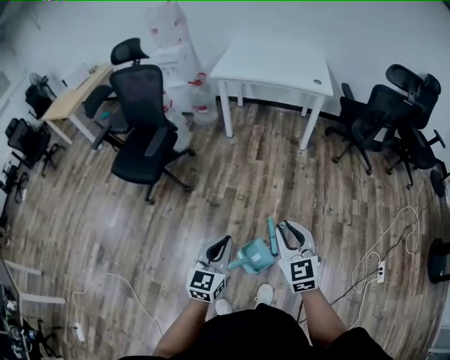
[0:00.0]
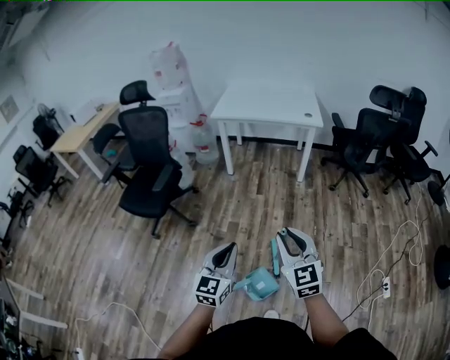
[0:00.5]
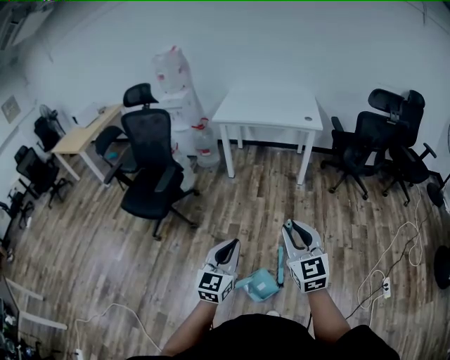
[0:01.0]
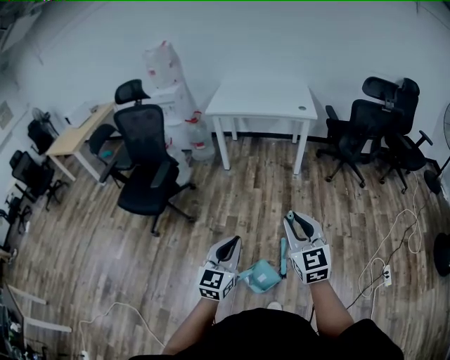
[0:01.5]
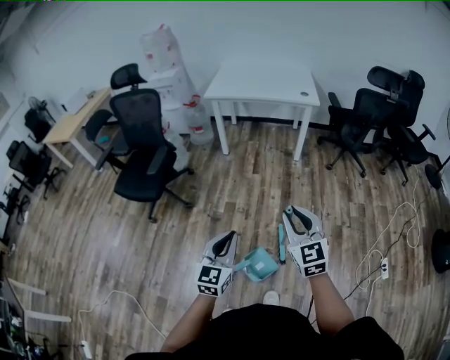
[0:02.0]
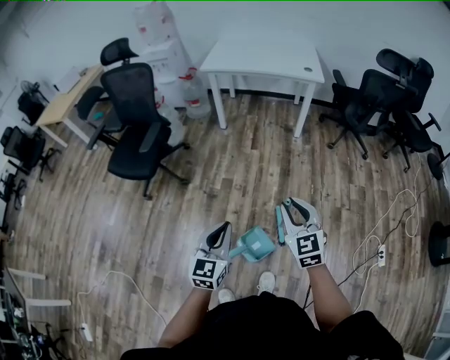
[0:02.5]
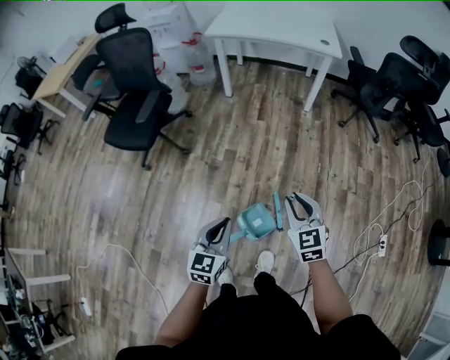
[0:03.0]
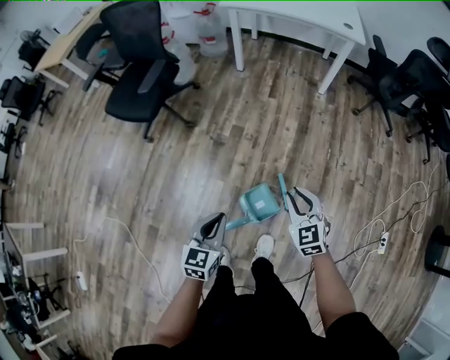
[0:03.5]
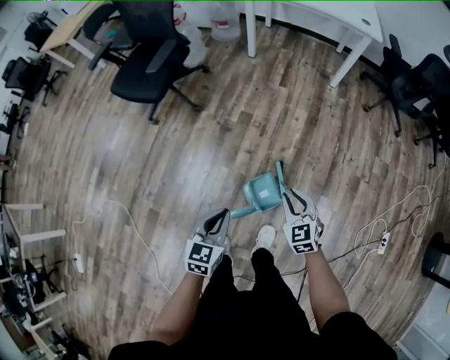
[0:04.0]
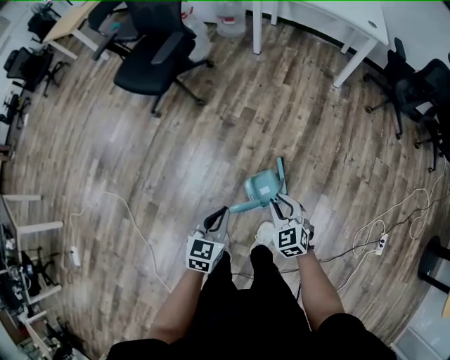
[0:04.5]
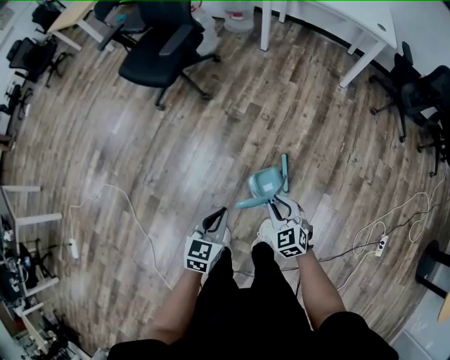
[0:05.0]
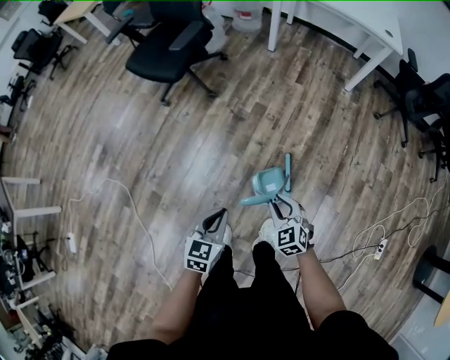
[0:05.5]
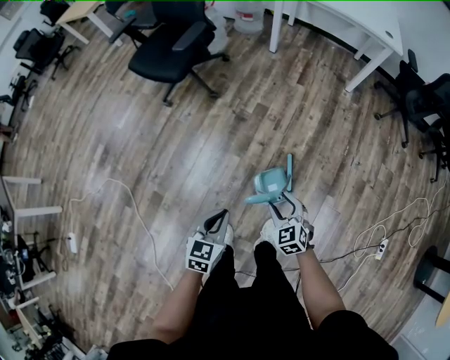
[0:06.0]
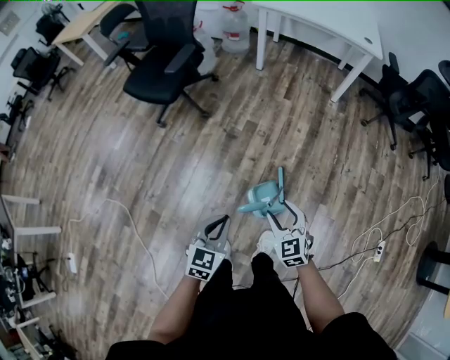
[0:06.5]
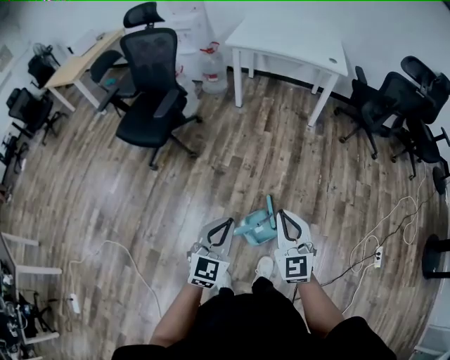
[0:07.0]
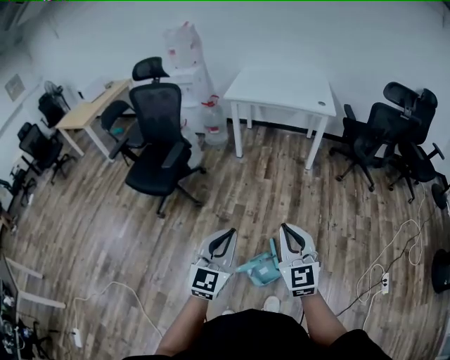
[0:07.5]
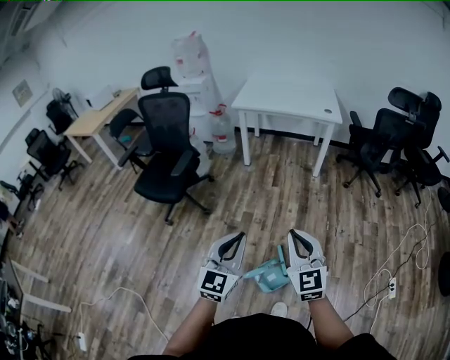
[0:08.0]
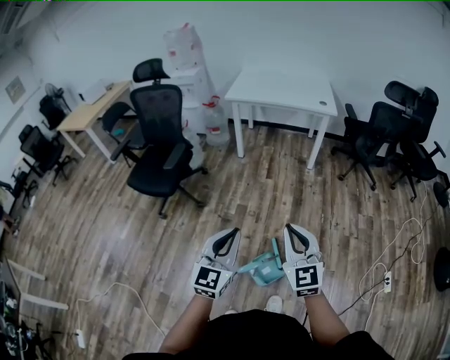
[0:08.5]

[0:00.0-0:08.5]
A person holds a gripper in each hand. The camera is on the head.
0:00.0 to 0:02.0: The right gripper goes roughly 5 cm upward.
0:02.0 to 0:04.0: The left gripper shifts about 20 cm downward and backward, and rotates roughly 30 degrees; the right gripper goes about 25 cm downward, and changes its angle by about 30 degrees.
0:04.0 to 0:06.5: The left gripper moves roughly 5 cm, while the right gripper moves to the left and backward, about 10 cm, and opens up.
0:06.5 to 0:08.5: The right gripper goes roughly 25 cm upward, rotates some 30 degrees, and closes up. Meanwhile the left gripper shifts approximately 25 cm upward and forward, and swivels about 30 degrees.

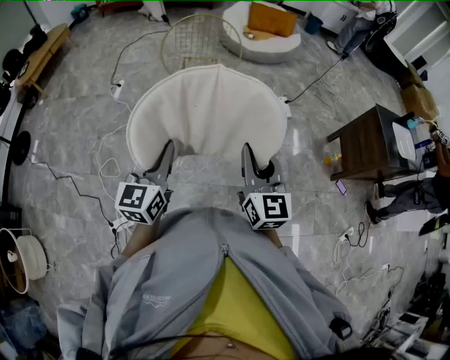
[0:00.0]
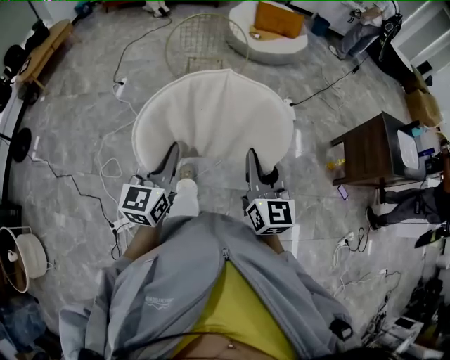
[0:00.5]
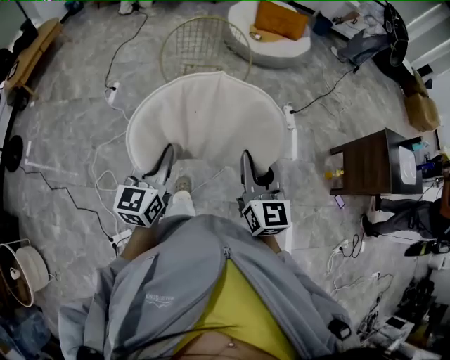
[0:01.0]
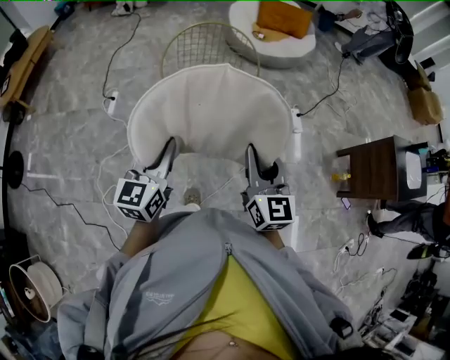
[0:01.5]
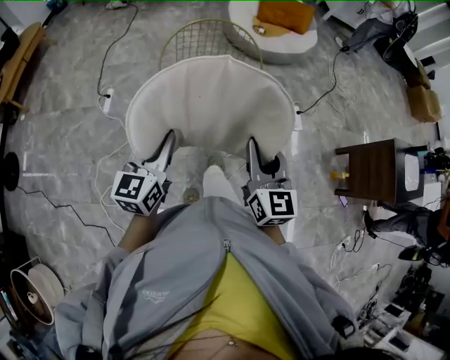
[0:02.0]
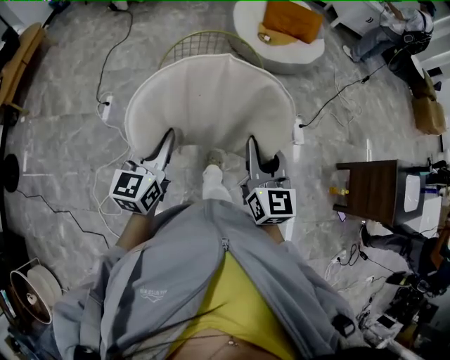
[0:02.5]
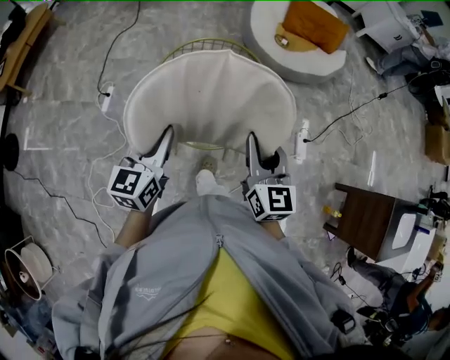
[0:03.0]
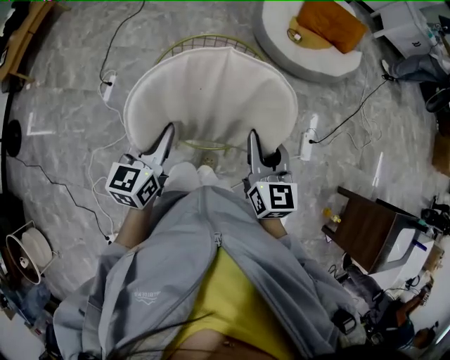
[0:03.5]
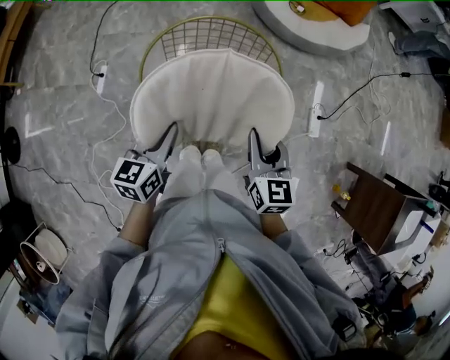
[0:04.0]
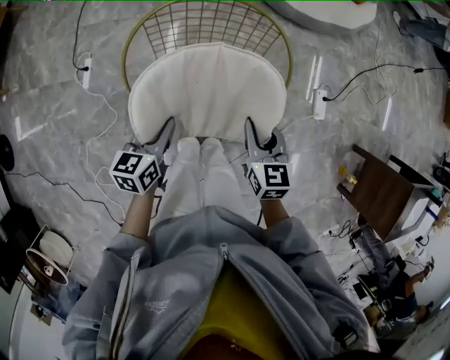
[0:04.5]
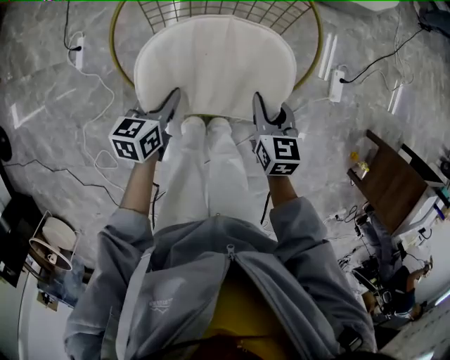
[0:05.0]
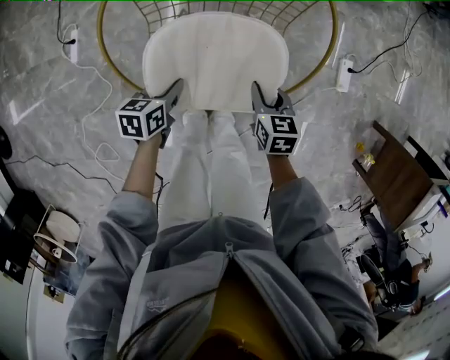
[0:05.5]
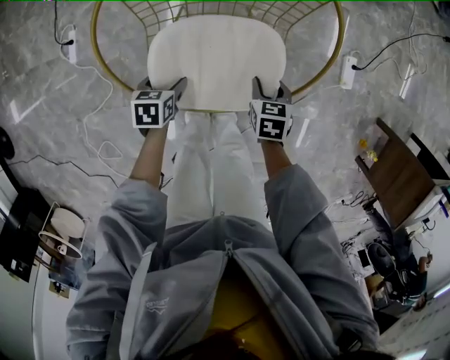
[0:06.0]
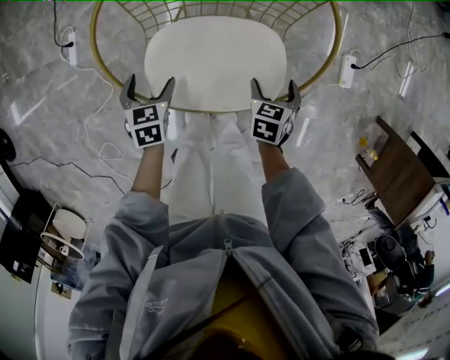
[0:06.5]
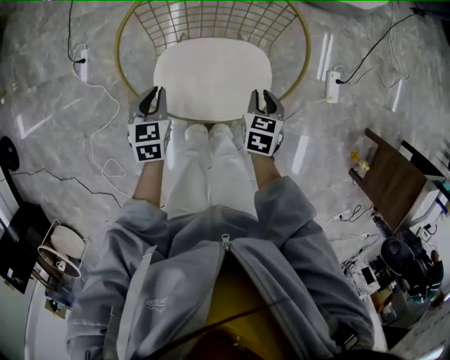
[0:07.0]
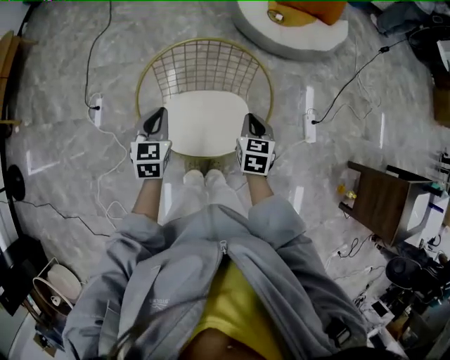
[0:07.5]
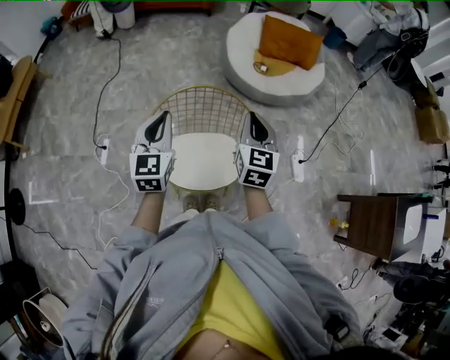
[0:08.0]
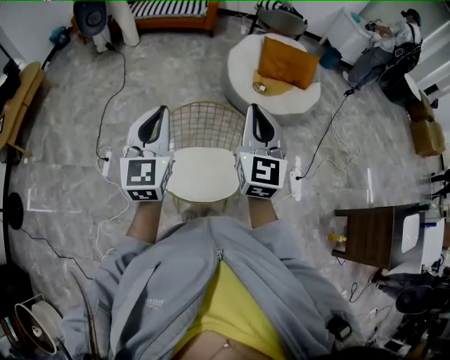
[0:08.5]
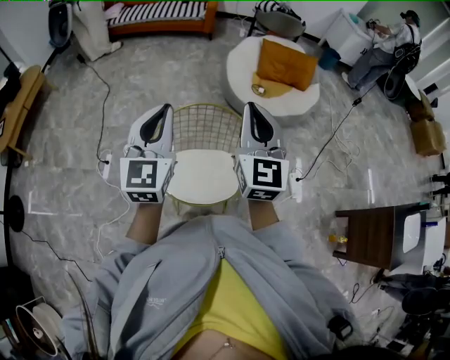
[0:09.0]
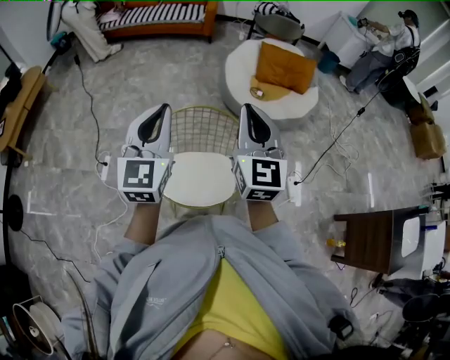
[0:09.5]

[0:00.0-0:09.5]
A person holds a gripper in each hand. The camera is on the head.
0:00.0 to 0:02.0: Both grippers move forward, some 40 cm.
0:02.0 to 0:04.0: The grippers both shift forward and downward by some 35 cm. The left gripper turns by some 20 degrees, while the right gripper turns by roughly 20 degrees.
0:04.0 to 0:05.5: Both grippers travel together downward, about 30 cm. The right gripper rotates approximately 30 degrees. Meanwhile the left gripper rotates approximately 30 degrees.
0:05.5 to 0:07.5: Both grippers travel together upward, about 25 cm. The right gripper opens and closes again. The left gripper turns by about 40 degrees, and opens and closes again.
0:07.5 to 0:09.5: Both grippers travel together upward, approximately 35 cm. The right gripper points its fingers some 40 degrees further upward, while the left gripper angles its fingers upward, by roughly 40 degrees.

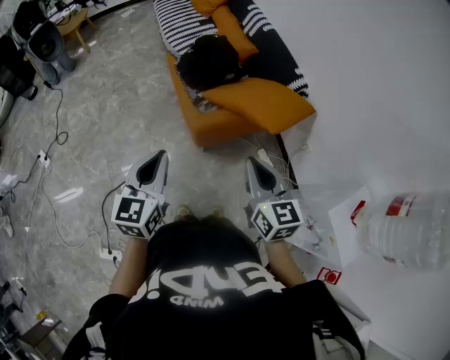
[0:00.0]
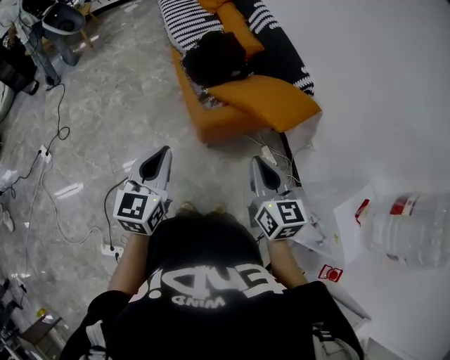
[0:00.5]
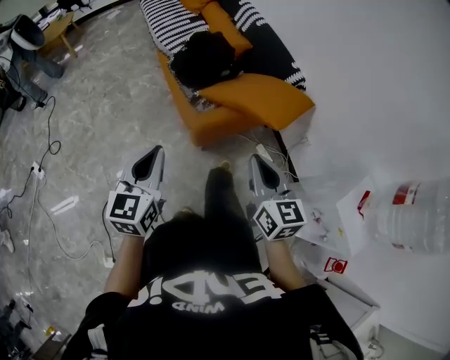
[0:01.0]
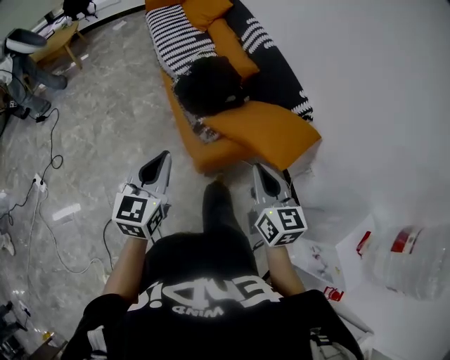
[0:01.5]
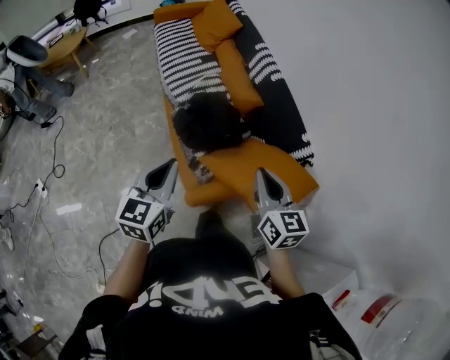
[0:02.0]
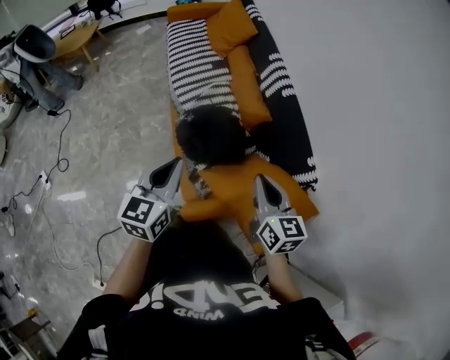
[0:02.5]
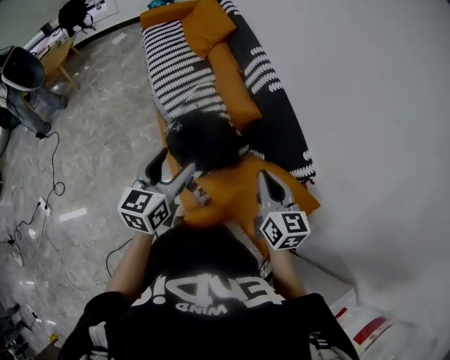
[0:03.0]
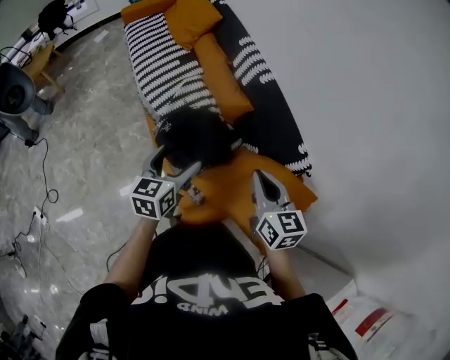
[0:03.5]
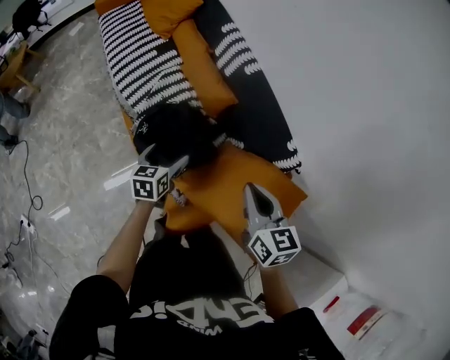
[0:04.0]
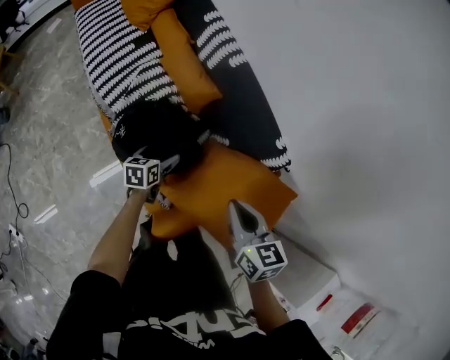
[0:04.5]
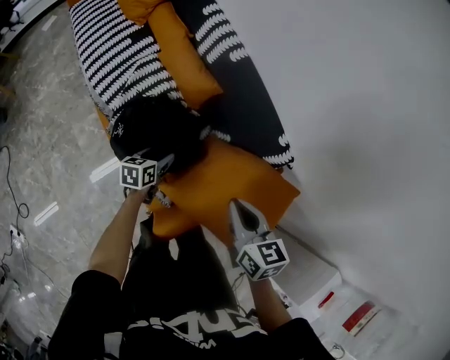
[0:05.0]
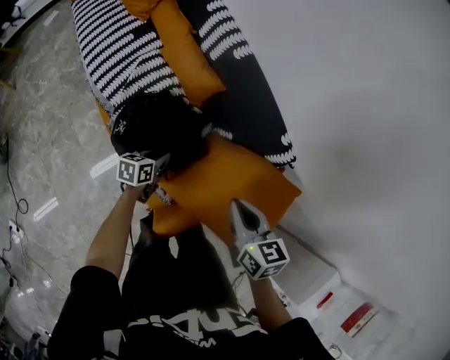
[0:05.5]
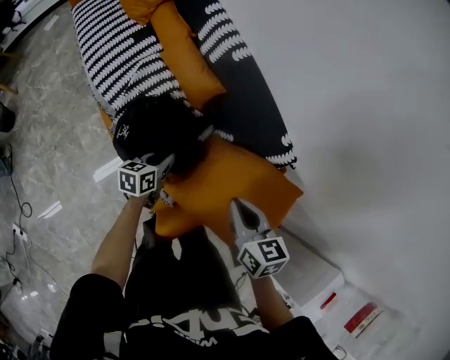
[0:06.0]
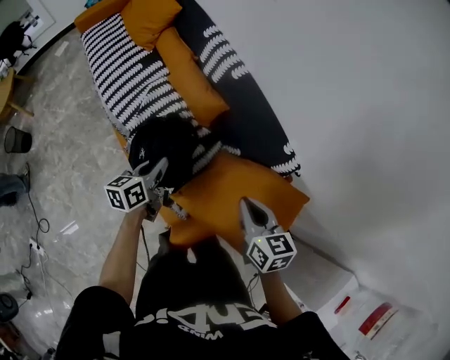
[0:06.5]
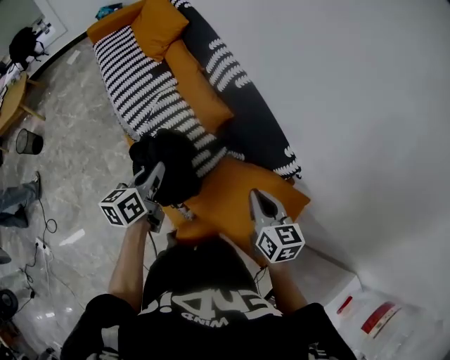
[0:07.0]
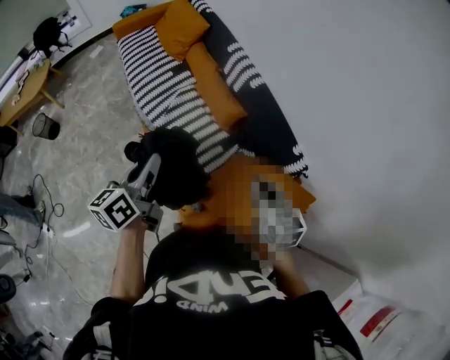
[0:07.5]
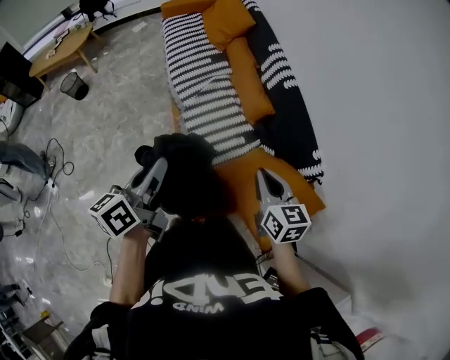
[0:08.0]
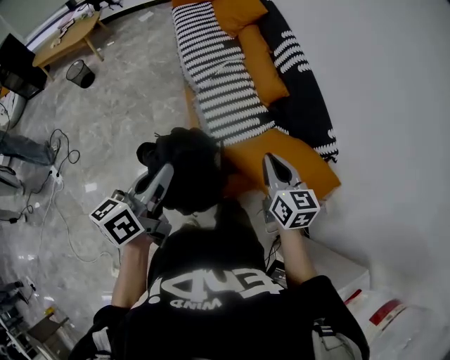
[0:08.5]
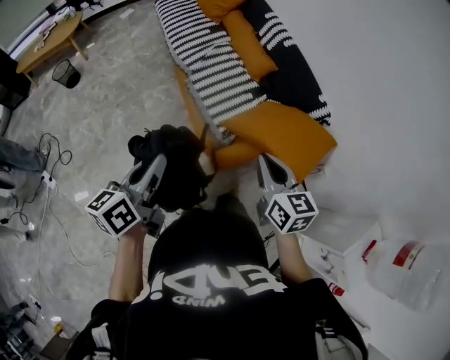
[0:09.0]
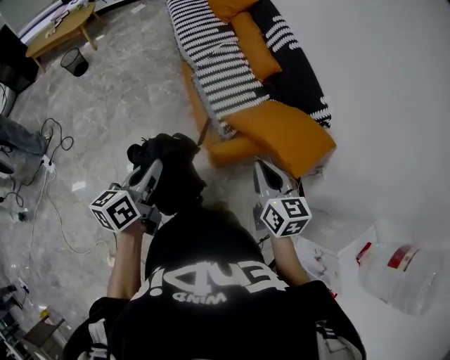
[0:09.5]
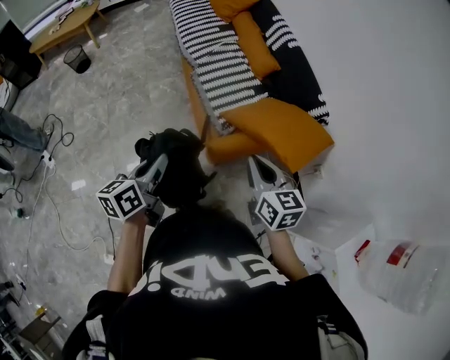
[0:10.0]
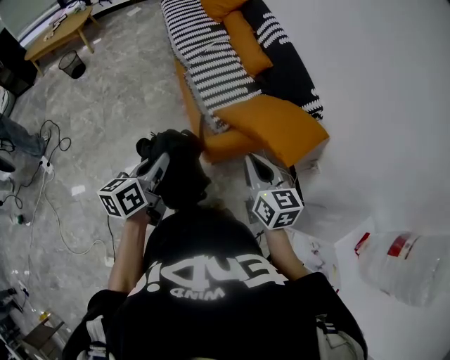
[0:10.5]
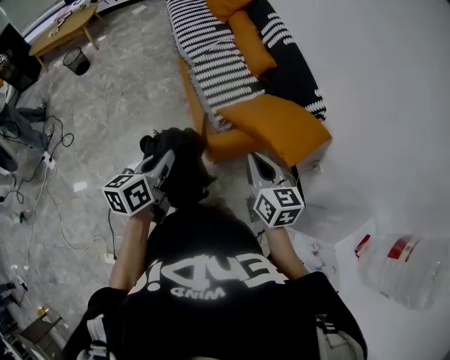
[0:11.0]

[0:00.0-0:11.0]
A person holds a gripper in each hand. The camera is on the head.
0:00.0 to 0:02.0: Both grippers travel together forward, some 35 cm.
0:02.0 to 0:03.5: The two grippers go about 20 cm forward. The left gripper opens.
0:03.5 to 0:05.5: The right gripper travels downward by roughly 10 cm. The left gripper heads downward, covering roughly 30 cm, turns by about 40 degrees, and closes up.
0:05.5 to 0:07.5: The right gripper goes roughly 10 cm upward, while the left gripper shifts some 40 cm upward, and rotates about 40 degrees.
0:07.5 to 0:09.0: The two grippers go approximately 40 cm backward and to the left.
0:09.0 to 0:11.0: The right gripper moves backward, approximately 10 cm; the left gripper travels backward, to the right and downward by roughly 15 cm.
